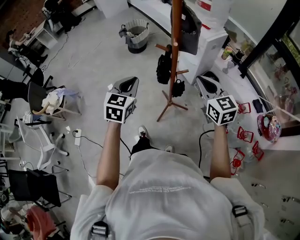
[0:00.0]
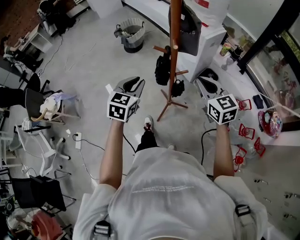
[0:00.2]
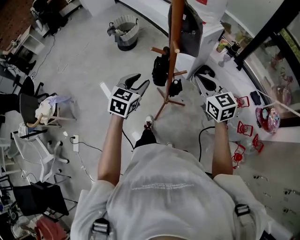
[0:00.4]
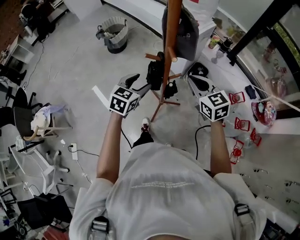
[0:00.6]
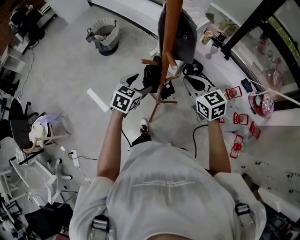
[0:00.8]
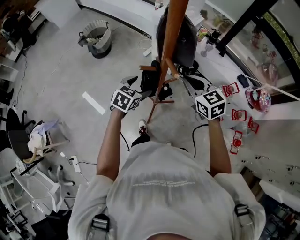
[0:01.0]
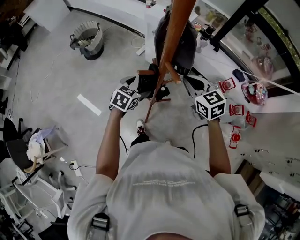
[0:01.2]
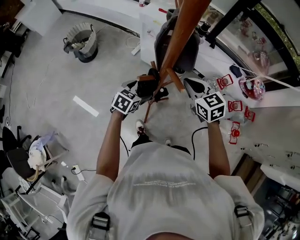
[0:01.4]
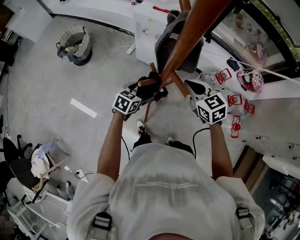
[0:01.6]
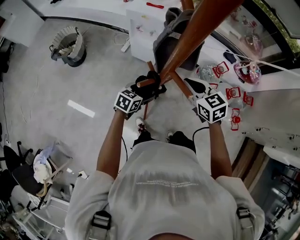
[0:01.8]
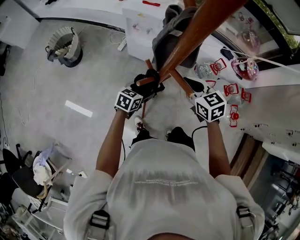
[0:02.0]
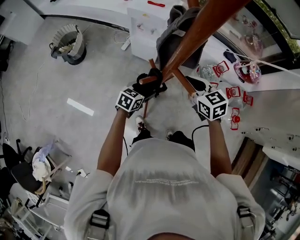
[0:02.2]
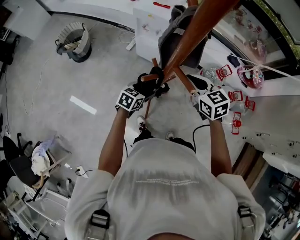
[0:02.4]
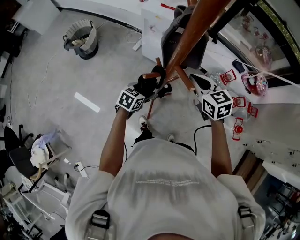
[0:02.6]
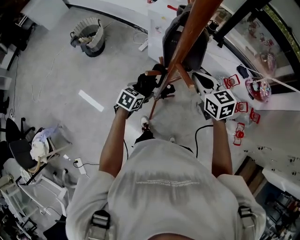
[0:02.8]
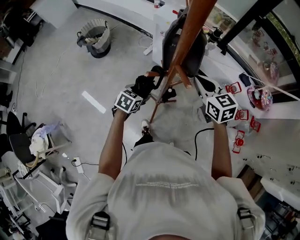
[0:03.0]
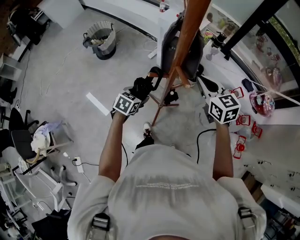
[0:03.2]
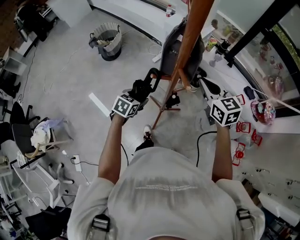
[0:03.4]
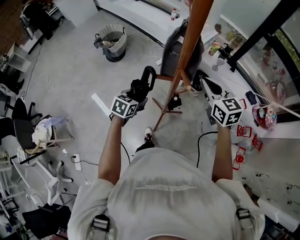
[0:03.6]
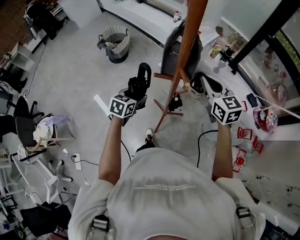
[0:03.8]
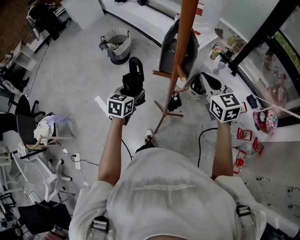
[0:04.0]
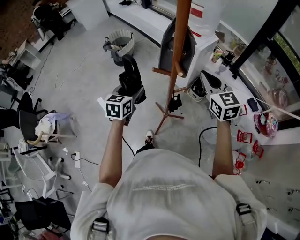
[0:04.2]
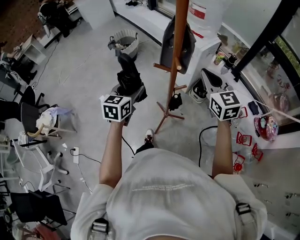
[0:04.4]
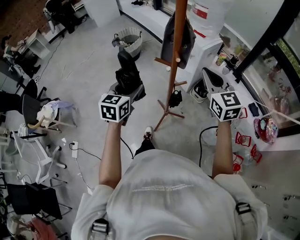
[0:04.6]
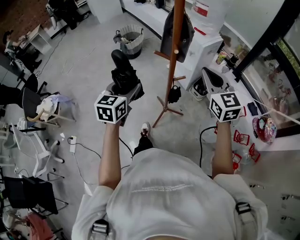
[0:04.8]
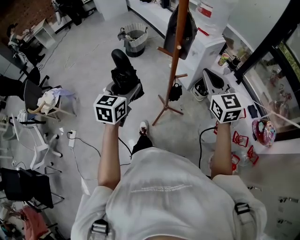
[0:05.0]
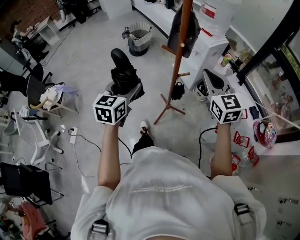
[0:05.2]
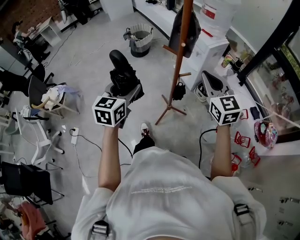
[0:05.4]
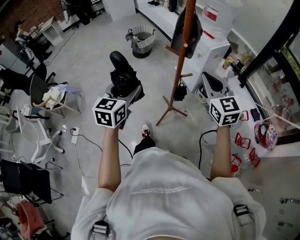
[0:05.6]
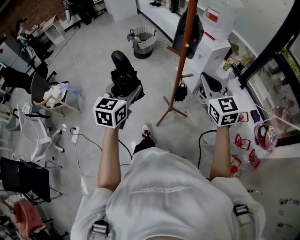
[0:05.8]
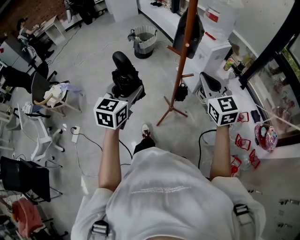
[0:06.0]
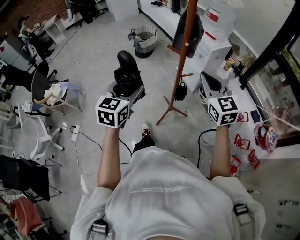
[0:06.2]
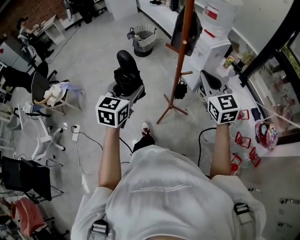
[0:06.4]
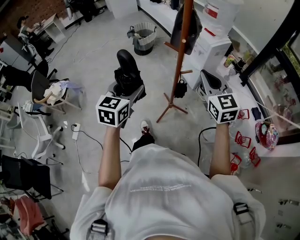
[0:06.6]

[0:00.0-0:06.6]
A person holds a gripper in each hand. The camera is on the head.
0.0 to 1.6 s: The left gripper heads downward, covering approximately 25 cm, swivels roughly 50 degrees, and opens its fingers; the right gripper changes place by about 15 cm, and changes its angle by roughly 30 degrees.
1.6 to 3.2 s: The right gripper heads upward, covering approximately 5 cm; the left gripper heads to the left, covering approximately 5 cm.
3.2 to 5.0 s: The right gripper ends up approximately 15 cm from where it was, and rotates approximately 20 degrees. The left gripper is displaced upward by some 25 cm, and rotates roughly 50 degrees.
5.0 to 6.6 s: The left gripper moves backward, some 5 cm.

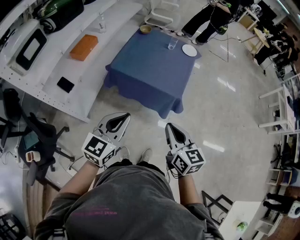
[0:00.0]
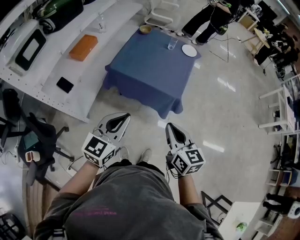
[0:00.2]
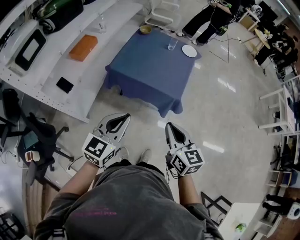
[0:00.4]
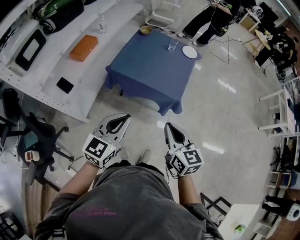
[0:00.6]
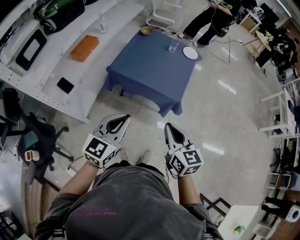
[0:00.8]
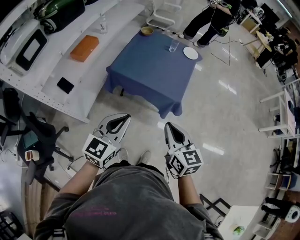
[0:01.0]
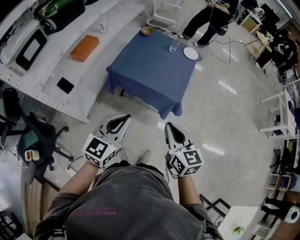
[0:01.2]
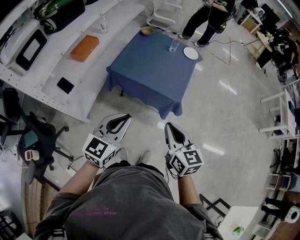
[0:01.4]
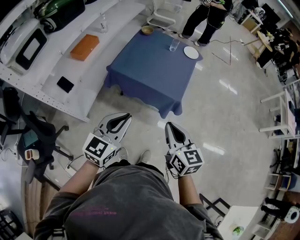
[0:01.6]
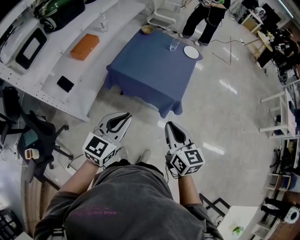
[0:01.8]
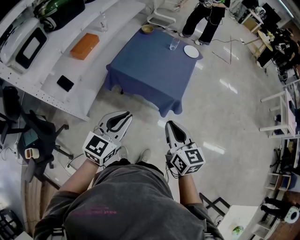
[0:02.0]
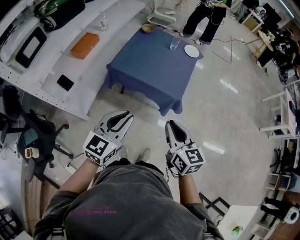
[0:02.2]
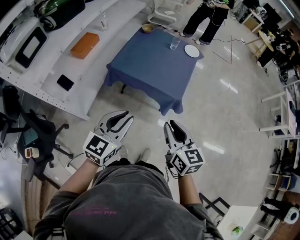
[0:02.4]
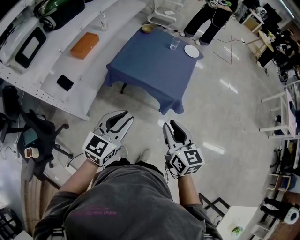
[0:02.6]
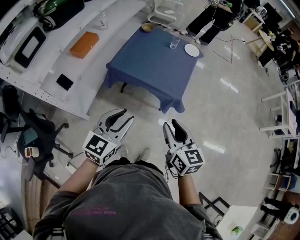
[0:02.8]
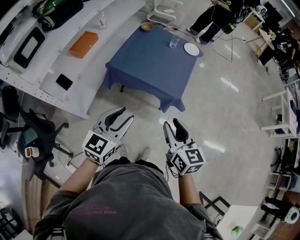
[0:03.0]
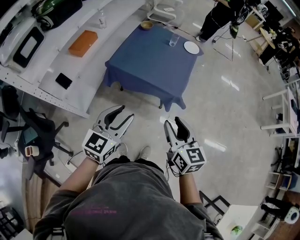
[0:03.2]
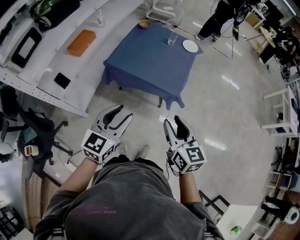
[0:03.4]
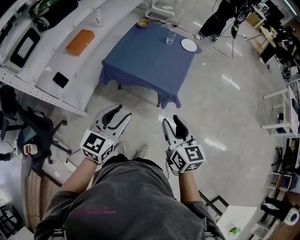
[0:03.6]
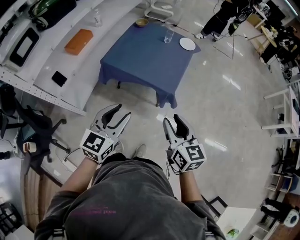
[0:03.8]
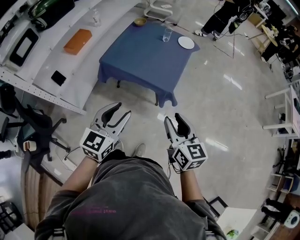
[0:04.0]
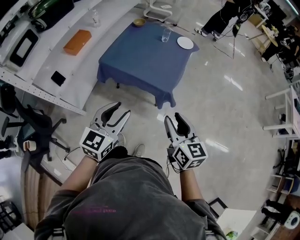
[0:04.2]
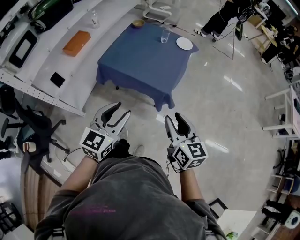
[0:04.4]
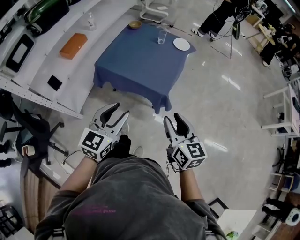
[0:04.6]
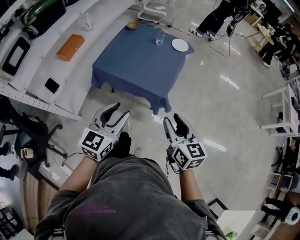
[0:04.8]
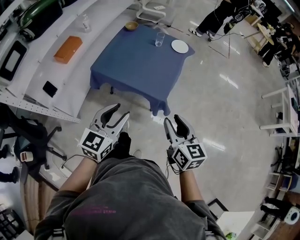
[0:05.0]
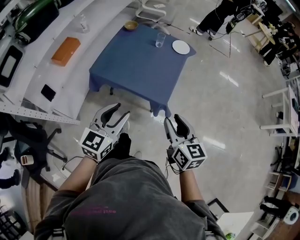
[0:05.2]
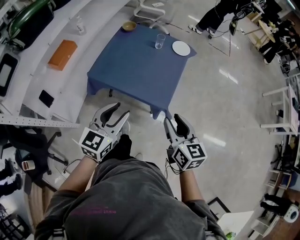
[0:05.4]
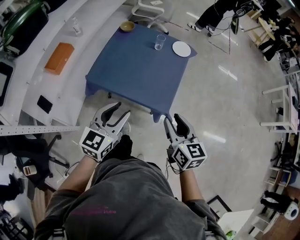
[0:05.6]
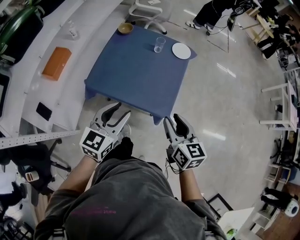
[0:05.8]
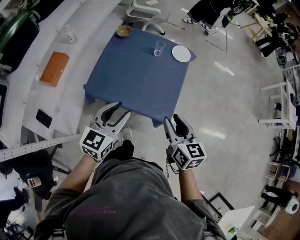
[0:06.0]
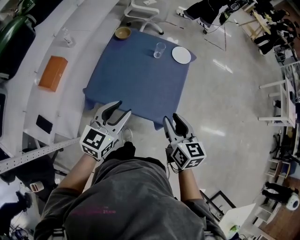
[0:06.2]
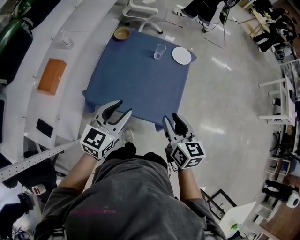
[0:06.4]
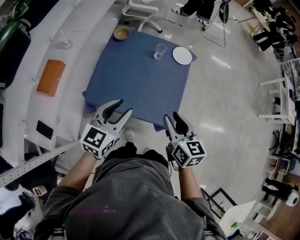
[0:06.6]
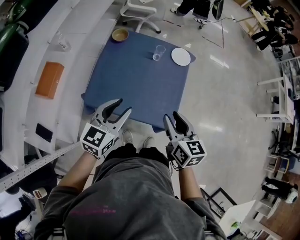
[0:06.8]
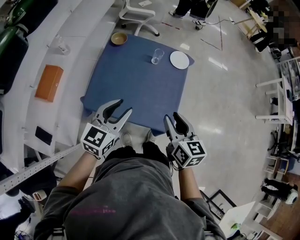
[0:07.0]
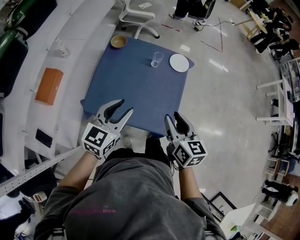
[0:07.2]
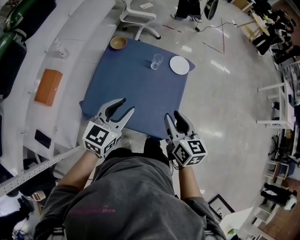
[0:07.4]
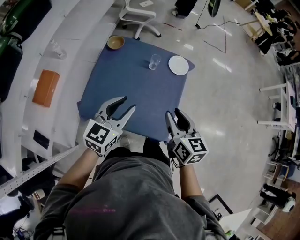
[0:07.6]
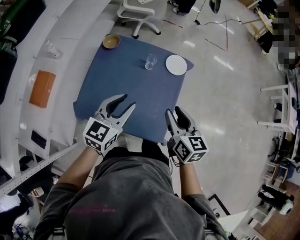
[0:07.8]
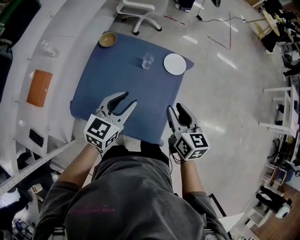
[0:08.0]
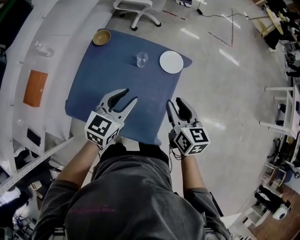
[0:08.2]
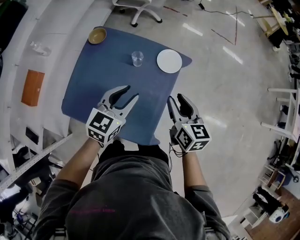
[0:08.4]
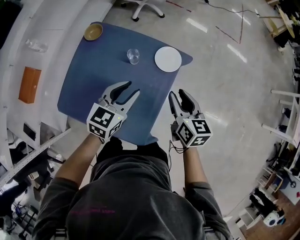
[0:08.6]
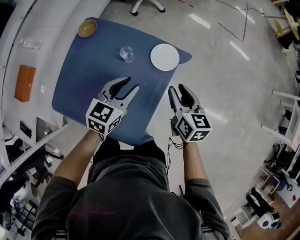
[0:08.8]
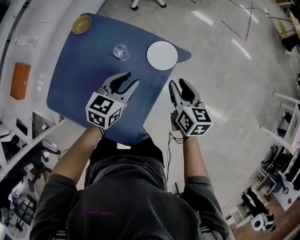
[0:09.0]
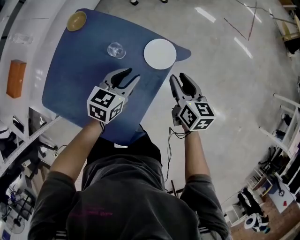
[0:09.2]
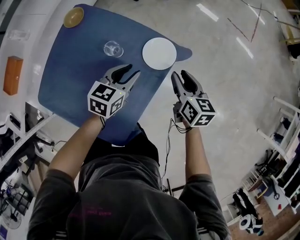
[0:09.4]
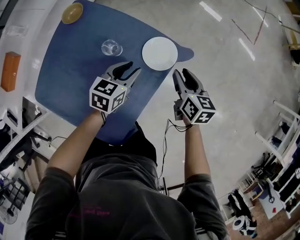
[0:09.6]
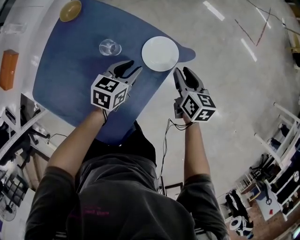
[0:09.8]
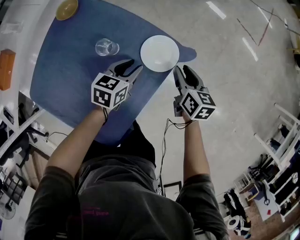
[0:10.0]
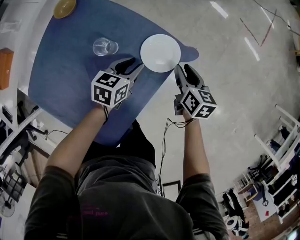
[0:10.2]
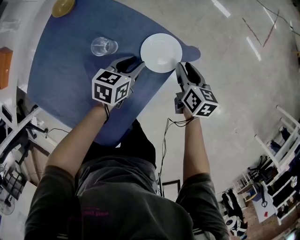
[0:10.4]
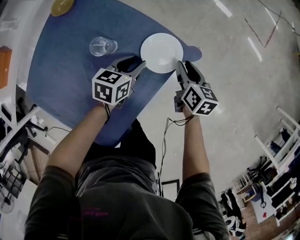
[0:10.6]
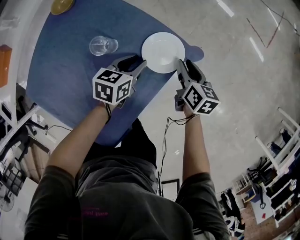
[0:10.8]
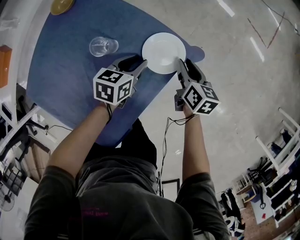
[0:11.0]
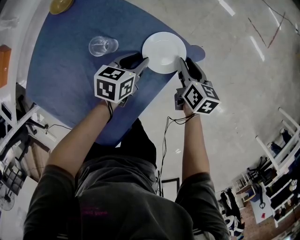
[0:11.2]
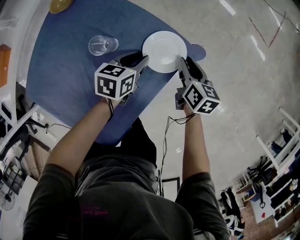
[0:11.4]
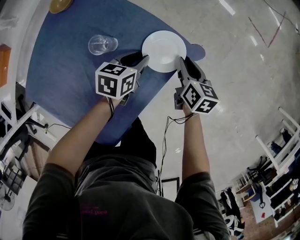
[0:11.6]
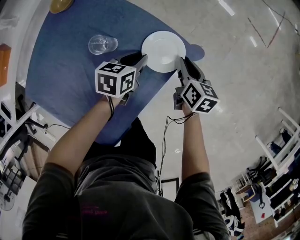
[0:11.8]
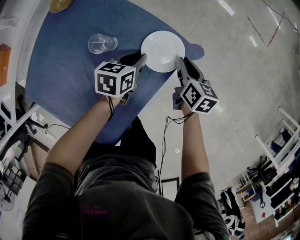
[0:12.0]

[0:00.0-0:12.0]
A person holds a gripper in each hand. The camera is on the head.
0.0 to 1.6 s: The grippers make only small movements.
1.6 to 3.0 s: The left gripper opens up. The right gripper opens its fingers.
3.0 to 4.4 s: Both grippers travel together to the right, approximately 10 cm.
4.4 to 6.0 s: Both grippers move forward, approximately 25 cm.
6.0 to 7.6 s: The grippers both shift forward by some 15 cm.
7.6 to 9.0 s: The two grippers go roughly 35 cm forward, to the right and downward.
9.0 to 10.4 s: Both grippers travel together downward and forward, some 20 cm.
10.4 to 12.0 s: The grippers move only a little.

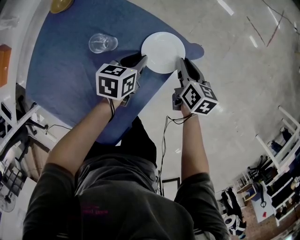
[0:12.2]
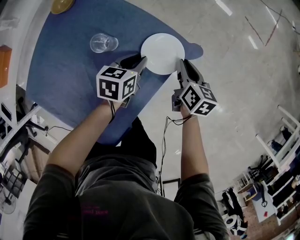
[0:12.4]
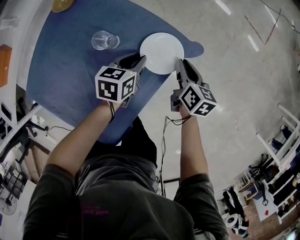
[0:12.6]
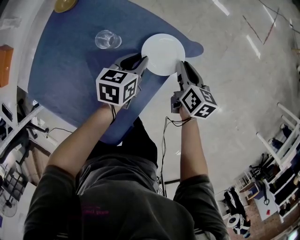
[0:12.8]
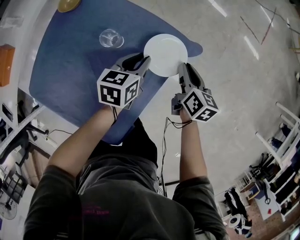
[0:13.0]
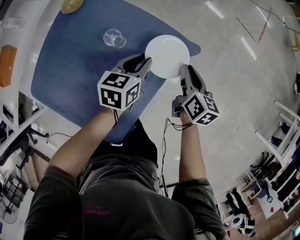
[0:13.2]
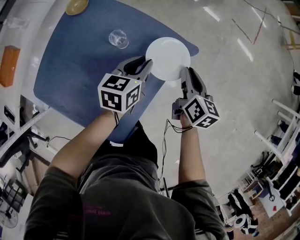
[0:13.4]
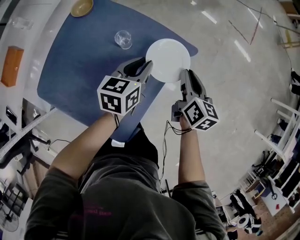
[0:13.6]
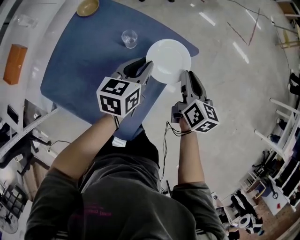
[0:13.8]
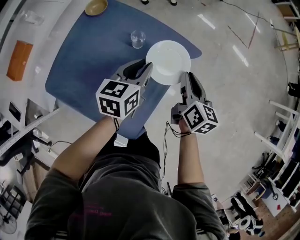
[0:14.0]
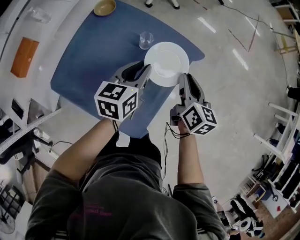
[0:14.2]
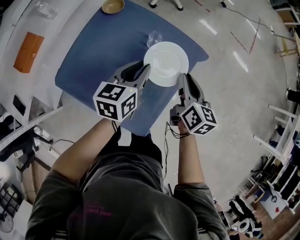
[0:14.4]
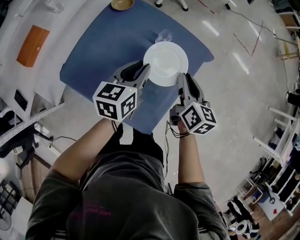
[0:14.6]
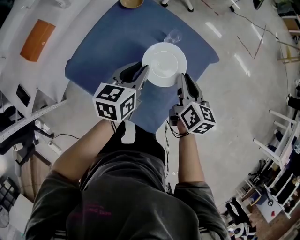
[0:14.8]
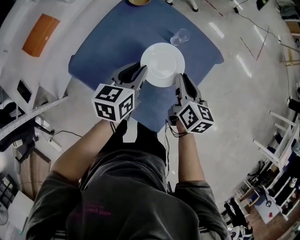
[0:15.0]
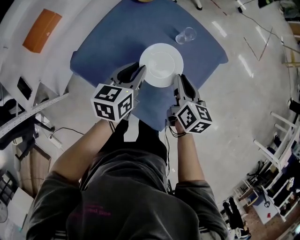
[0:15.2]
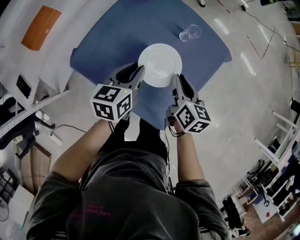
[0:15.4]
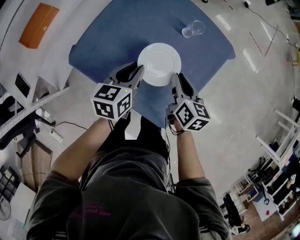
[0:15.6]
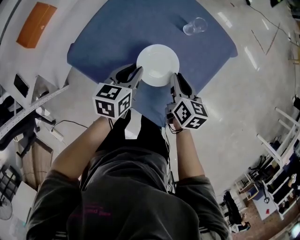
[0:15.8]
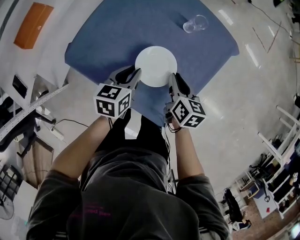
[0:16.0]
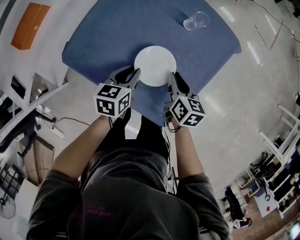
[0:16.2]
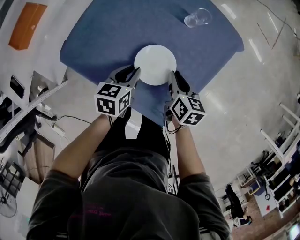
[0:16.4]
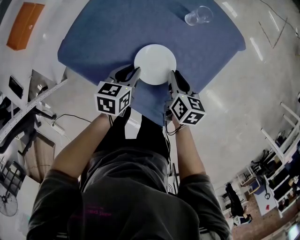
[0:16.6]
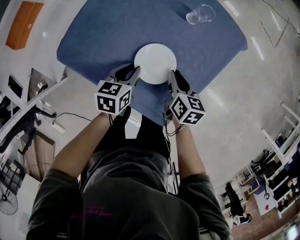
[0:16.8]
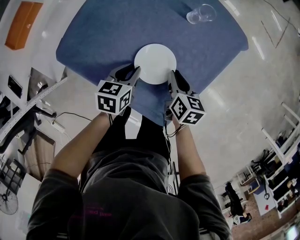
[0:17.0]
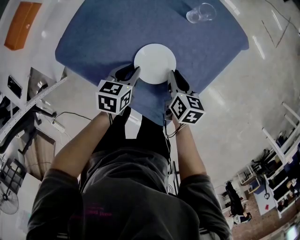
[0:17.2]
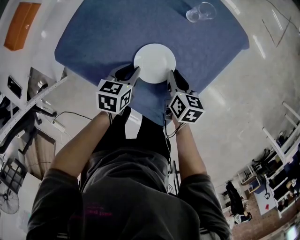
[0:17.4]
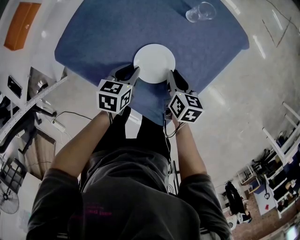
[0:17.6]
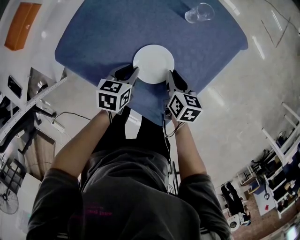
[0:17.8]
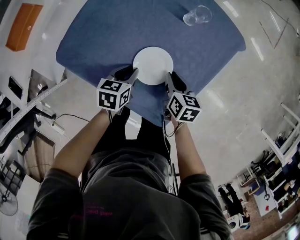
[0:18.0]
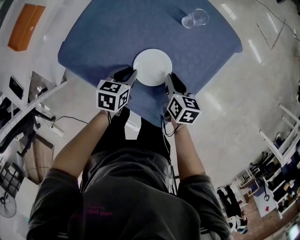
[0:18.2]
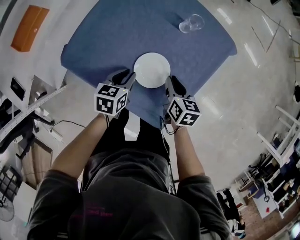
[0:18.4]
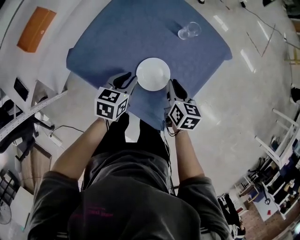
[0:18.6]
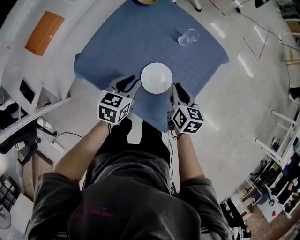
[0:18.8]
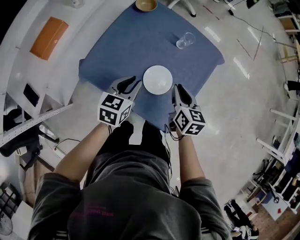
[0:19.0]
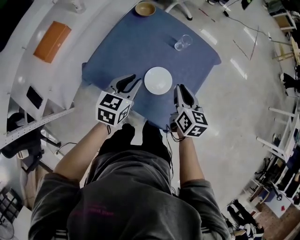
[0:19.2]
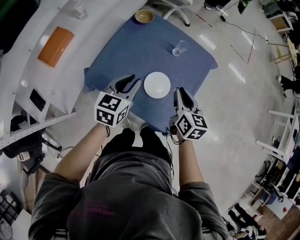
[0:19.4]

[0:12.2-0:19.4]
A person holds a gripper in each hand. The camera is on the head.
12.2 to 13.6 s: The right gripper is displaced upward and backward by about 15 cm. Meanwhile the left gripper is displaced upward by approximately 15 cm.
13.6 to 15.0 s: The grippers both shift to the left and backward by some 25 cm.
15.0 to 16.6 s: The two grippers go about 15 cm downward.
16.6 to 18.0 s: The grippers stay close to where they were, moving slightly.
18.0 to 19.4 s: Both grippers move upward, some 25 cm. The right gripper turns by about 20 degrees. Meanwhile the left gripper swivels roughly 30 degrees.
